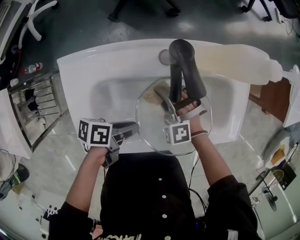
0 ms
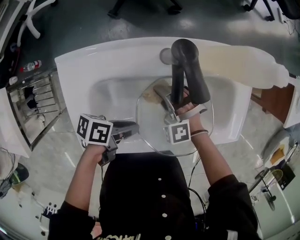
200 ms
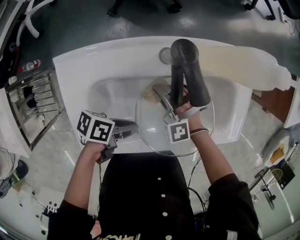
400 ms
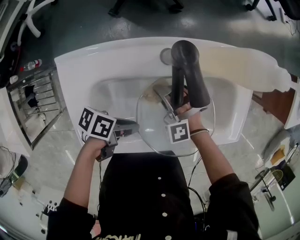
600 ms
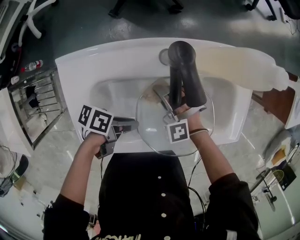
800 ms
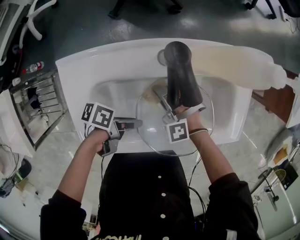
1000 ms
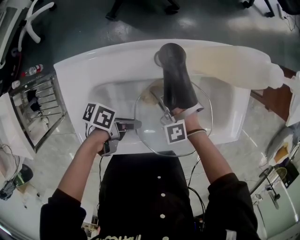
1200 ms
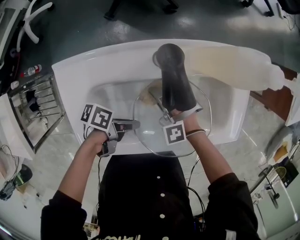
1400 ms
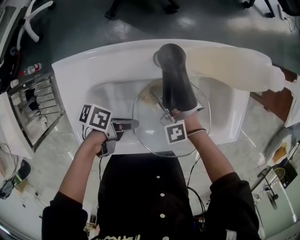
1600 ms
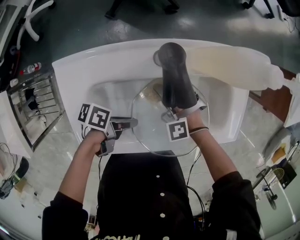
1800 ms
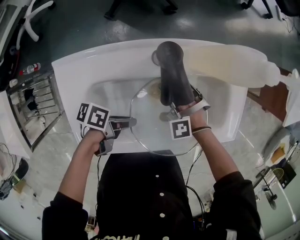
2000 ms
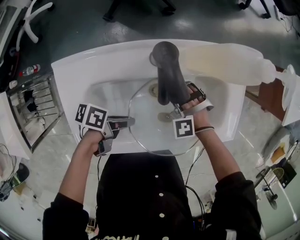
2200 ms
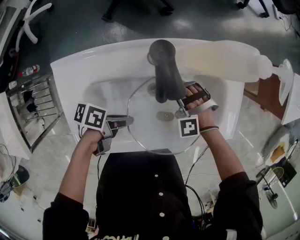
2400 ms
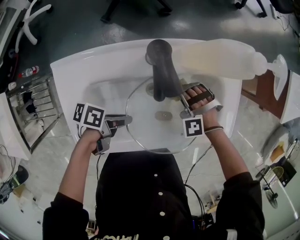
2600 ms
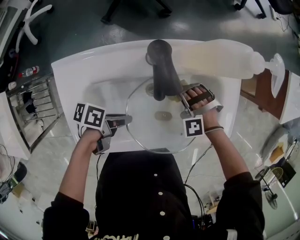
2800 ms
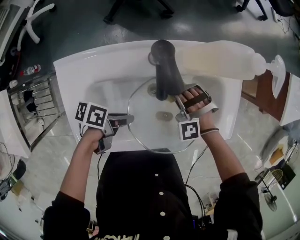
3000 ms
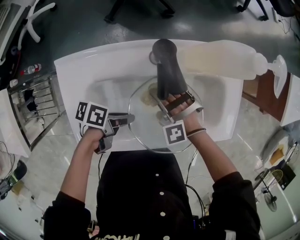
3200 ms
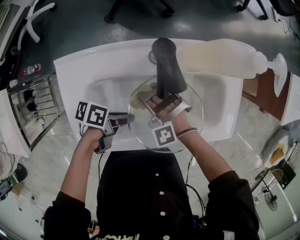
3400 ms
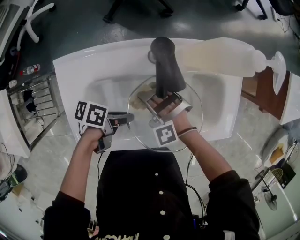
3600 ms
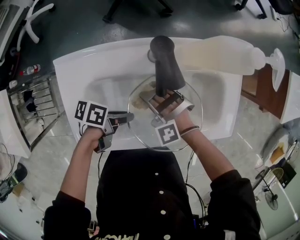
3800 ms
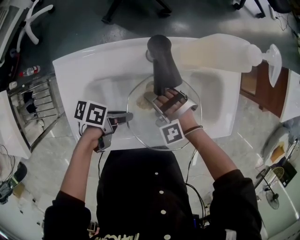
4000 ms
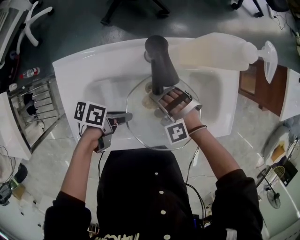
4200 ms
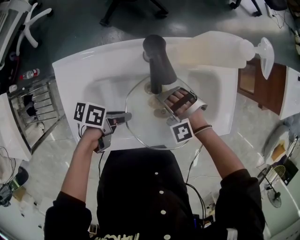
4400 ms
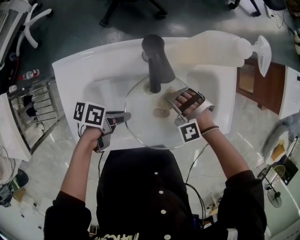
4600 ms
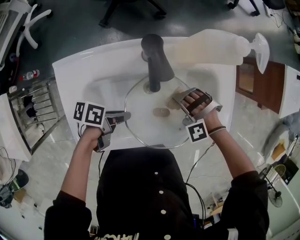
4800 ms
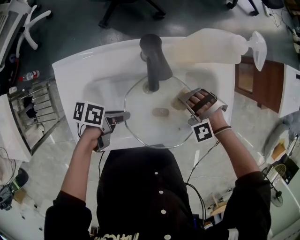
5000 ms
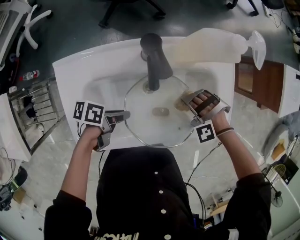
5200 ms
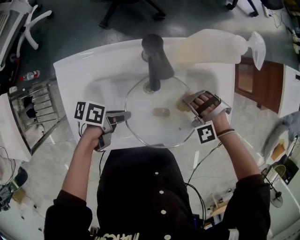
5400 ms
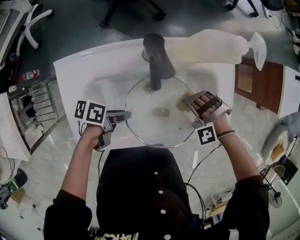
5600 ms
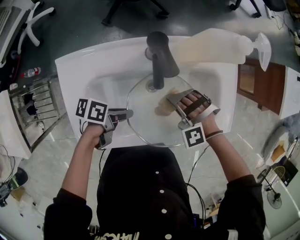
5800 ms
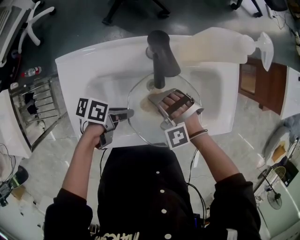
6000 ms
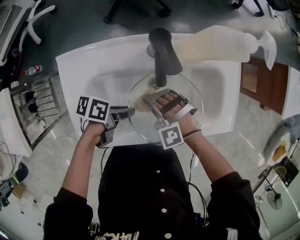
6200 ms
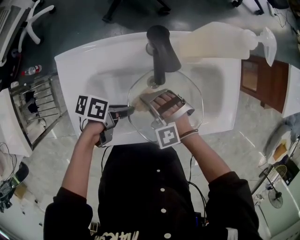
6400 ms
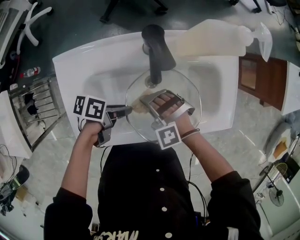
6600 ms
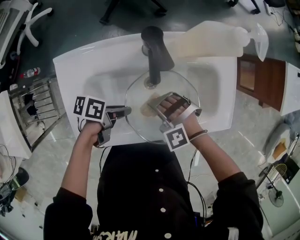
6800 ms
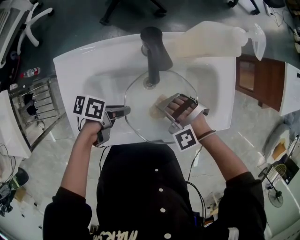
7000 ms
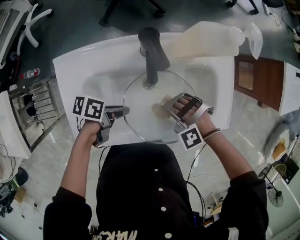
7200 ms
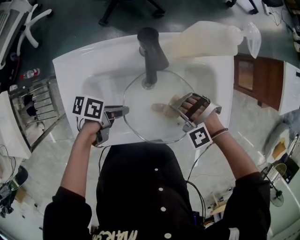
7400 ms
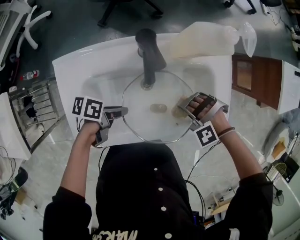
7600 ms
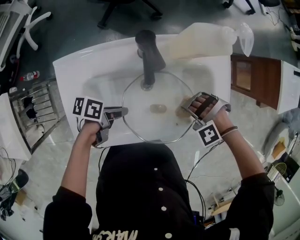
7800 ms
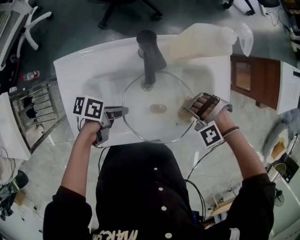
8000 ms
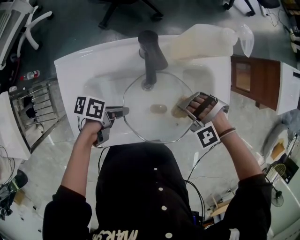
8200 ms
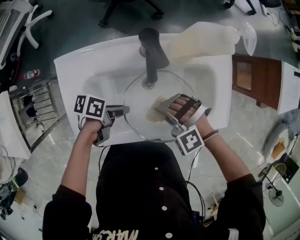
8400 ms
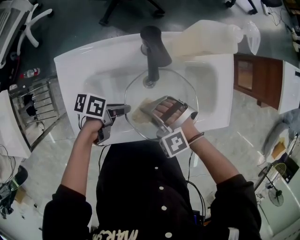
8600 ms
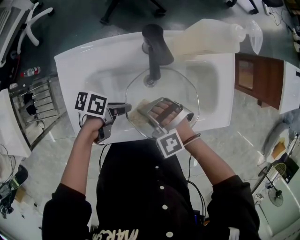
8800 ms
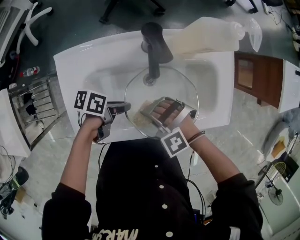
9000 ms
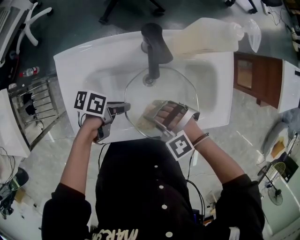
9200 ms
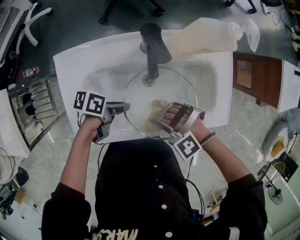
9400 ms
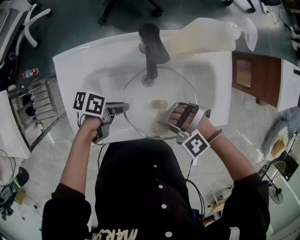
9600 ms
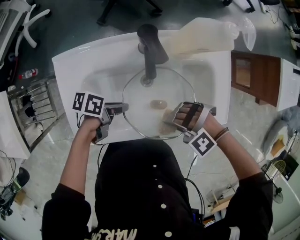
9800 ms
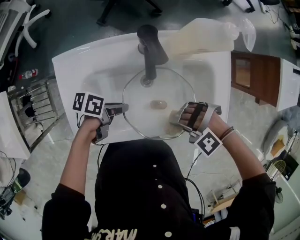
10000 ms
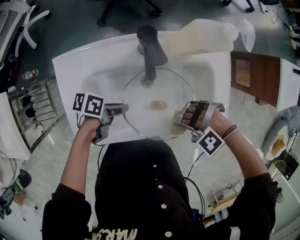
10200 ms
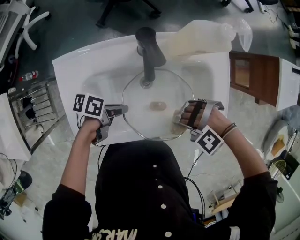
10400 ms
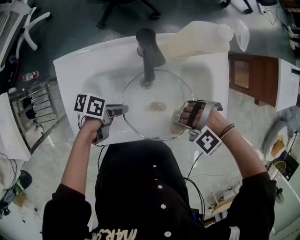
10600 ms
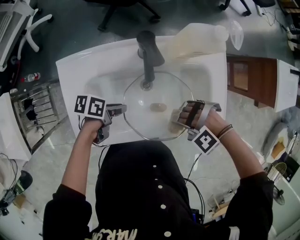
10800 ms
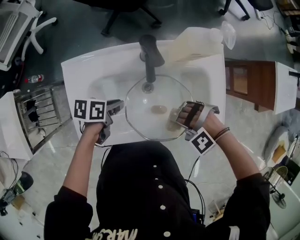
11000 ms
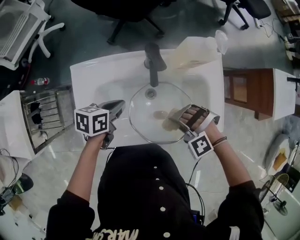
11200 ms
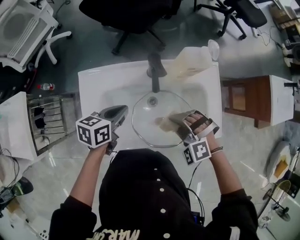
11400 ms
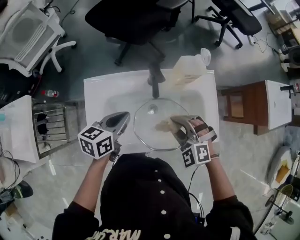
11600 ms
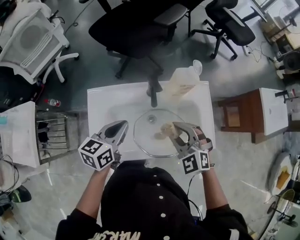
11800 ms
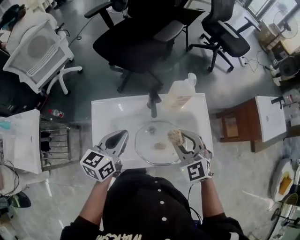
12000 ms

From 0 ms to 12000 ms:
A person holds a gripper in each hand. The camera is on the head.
From 0 ms to 1600 ms: The grippers stay close to where they were, moving slightly.
From 1600 ms to 3000 ms: The right gripper ends up some 10 cm from where it was.
From 6000 ms to 7600 ms: The right gripper ends up roughly 15 cm from where it was, and changes its angle by some 20 degrees.
From 7600 ms to 9000 ms: The right gripper ends up approximately 15 cm from where it was.
From 9000 ms to 10400 ms: The right gripper changes place by about 15 cm, and changes its angle by roughly 30 degrees.
From 10400 ms to 12000 ms: The two grippers go approximately 25 cm upward. The left gripper changes its angle by approximately 70 degrees, and closes its fingers, while the right gripper tips its fingers upward by roughly 40 degrees.

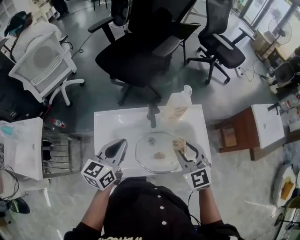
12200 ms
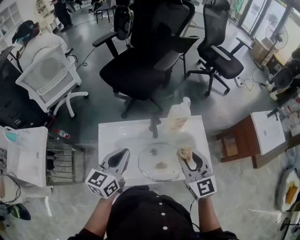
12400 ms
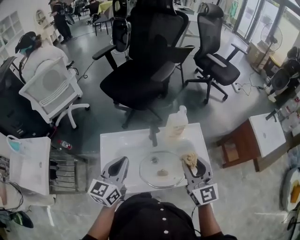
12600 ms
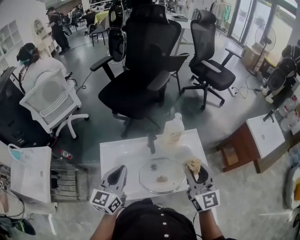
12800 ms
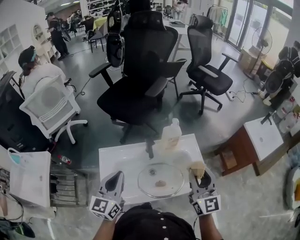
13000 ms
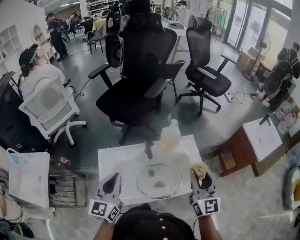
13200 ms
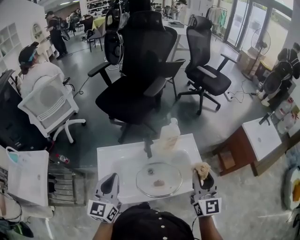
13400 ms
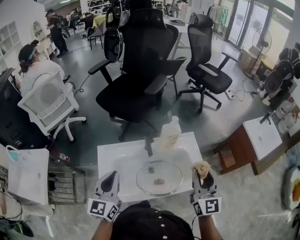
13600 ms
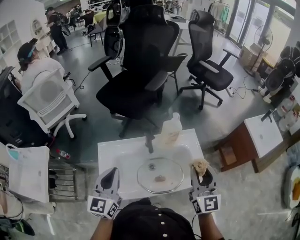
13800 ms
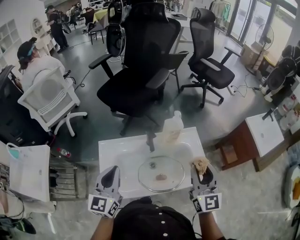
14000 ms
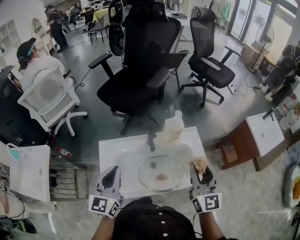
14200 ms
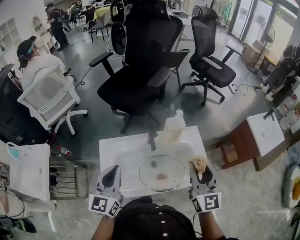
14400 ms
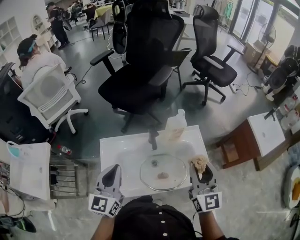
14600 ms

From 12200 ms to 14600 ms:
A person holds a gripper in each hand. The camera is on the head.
From 12200 ms to 13400 ms: The right gripper shifts about 15 cm to the right and upward, and rotates some 40 degrees. The left gripper goes roughly 10 cm upward and backward, and changes its angle by roughly 20 degrees.
From 13400 ms to 14600 ms: The grippers stay close to where they were, moving slightly.

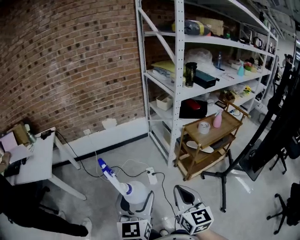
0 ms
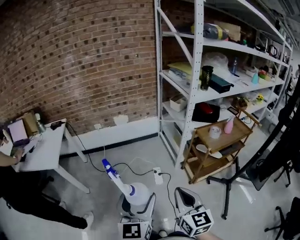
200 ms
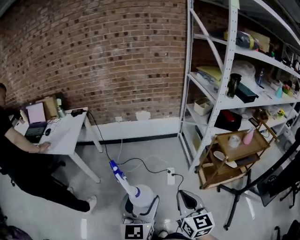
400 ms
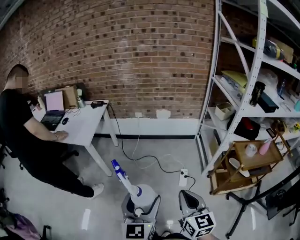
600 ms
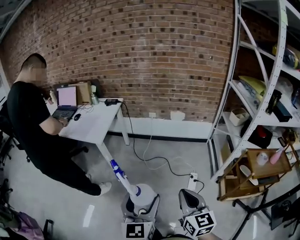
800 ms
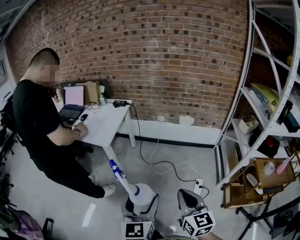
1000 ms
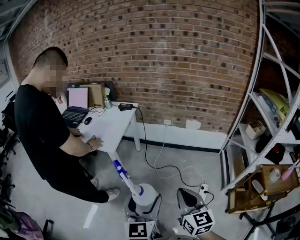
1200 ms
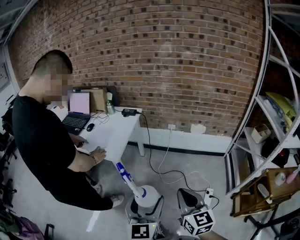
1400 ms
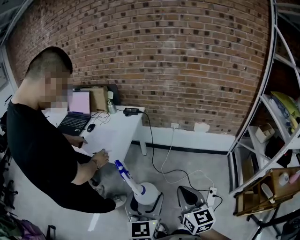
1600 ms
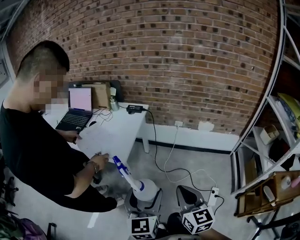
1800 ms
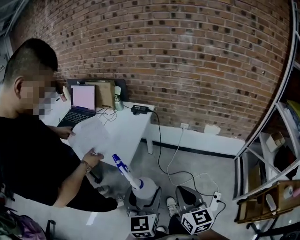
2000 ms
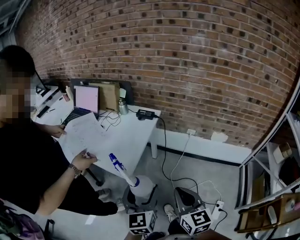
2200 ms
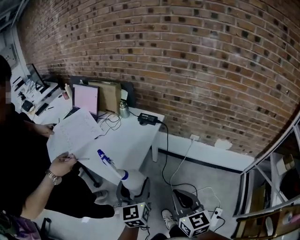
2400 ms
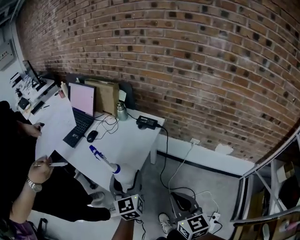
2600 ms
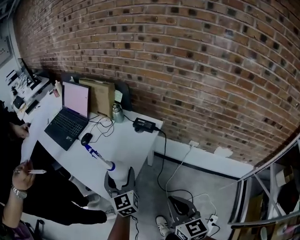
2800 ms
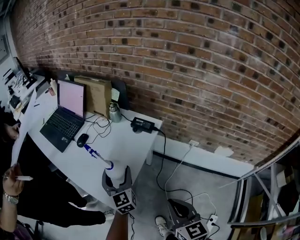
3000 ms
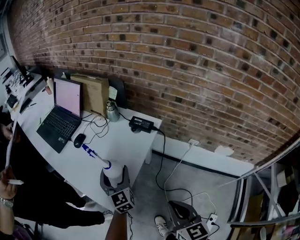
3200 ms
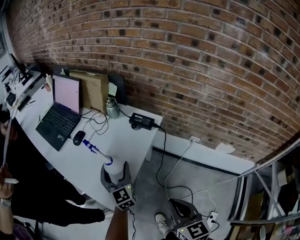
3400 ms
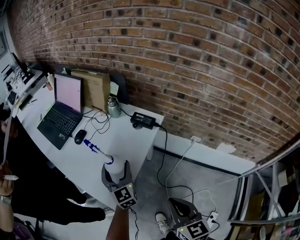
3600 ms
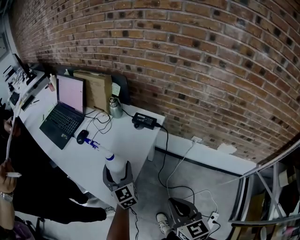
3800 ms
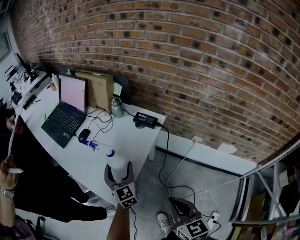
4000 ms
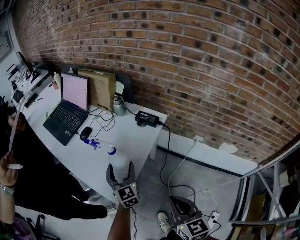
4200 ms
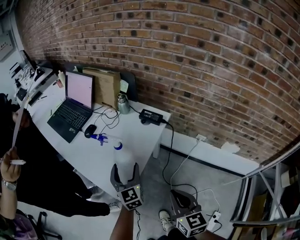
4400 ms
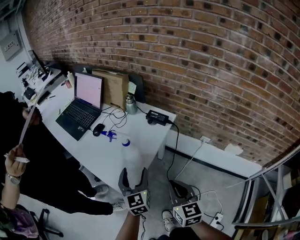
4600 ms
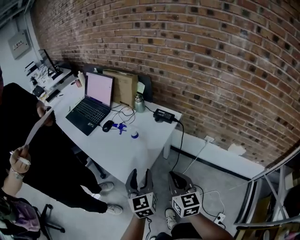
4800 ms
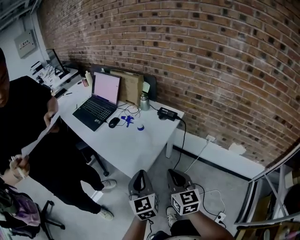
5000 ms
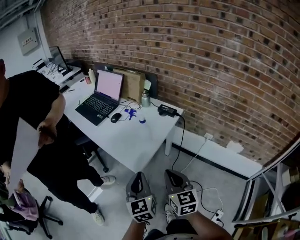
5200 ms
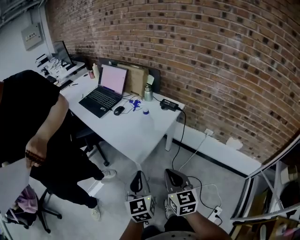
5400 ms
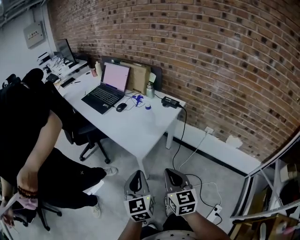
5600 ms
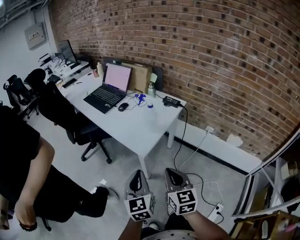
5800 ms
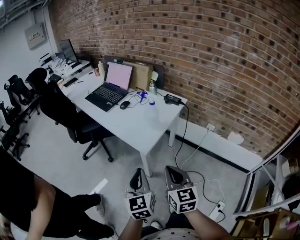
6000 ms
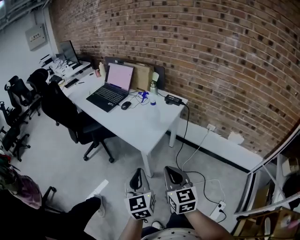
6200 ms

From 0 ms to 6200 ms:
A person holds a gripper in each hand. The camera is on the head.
From 0 ms to 1600 ms: The pair of grippers is taken approximately 40 cm. The left gripper changes its angle by roughly 30 degrees; the right gripper turns by roughly 40 degrees.
From 1600 ms to 3200 ms: The two grippers go approximately 40 cm forward. The left gripper turns by some 30 degrees.
From 3200 ms to 4600 ms: The left gripper is displaced backward by approximately 10 cm.
From 4600 ms to 6200 ms: Both grippers travel together backward and to the left, approximately 25 cm. The left gripper closes up.

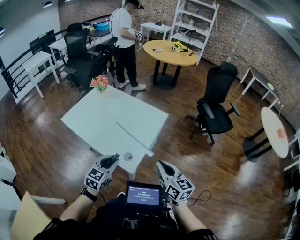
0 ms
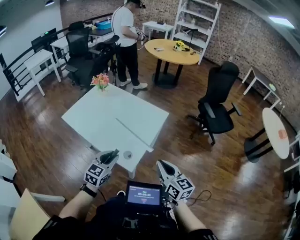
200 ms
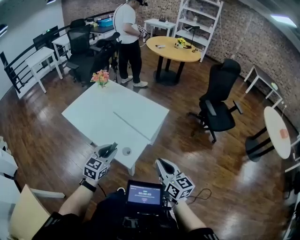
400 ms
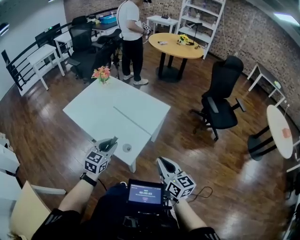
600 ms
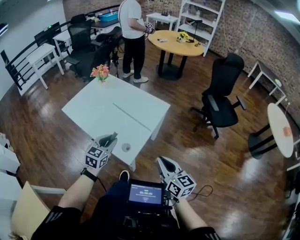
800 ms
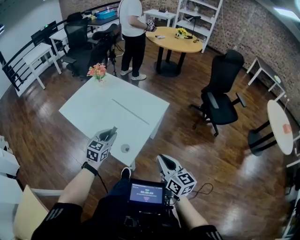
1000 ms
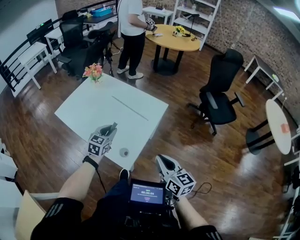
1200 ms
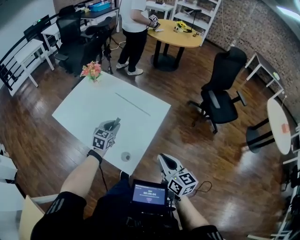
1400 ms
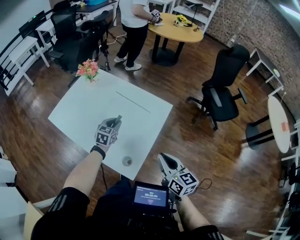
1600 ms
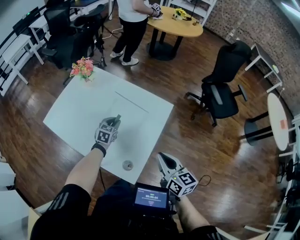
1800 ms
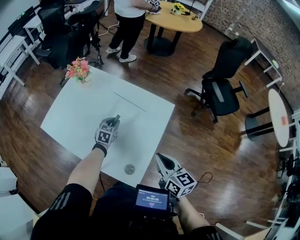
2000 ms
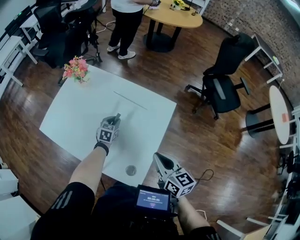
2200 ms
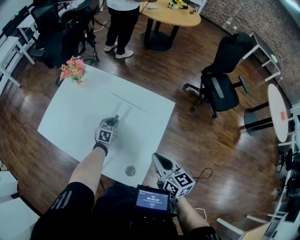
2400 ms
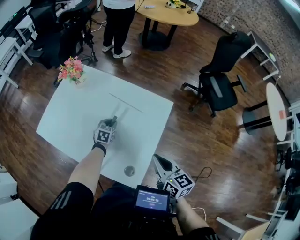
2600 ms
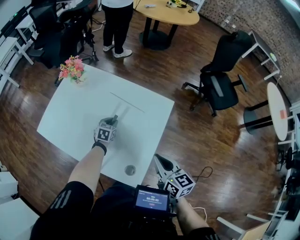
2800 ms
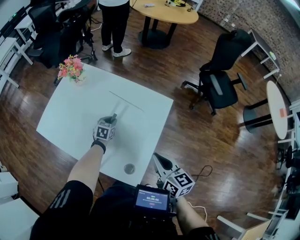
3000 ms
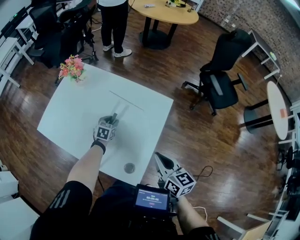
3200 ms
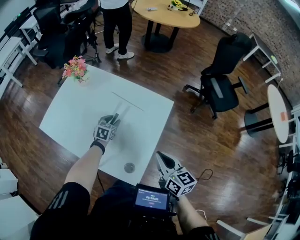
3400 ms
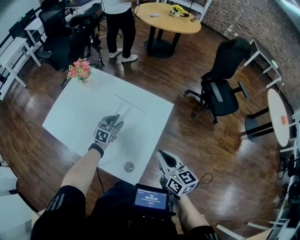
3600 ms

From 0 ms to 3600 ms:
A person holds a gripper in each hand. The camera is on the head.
From 0 ms to 1800 ms: The left gripper moves forward and downward, about 40 cm. Meanwhile the right gripper is displaced forward by about 20 cm.
From 1800 ms to 3600 ms: The left gripper goes downward and returns, roughly 10 cm each way, and opens up.
